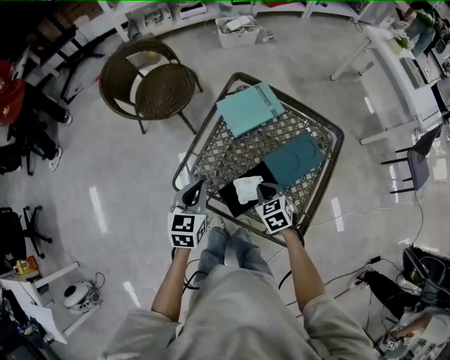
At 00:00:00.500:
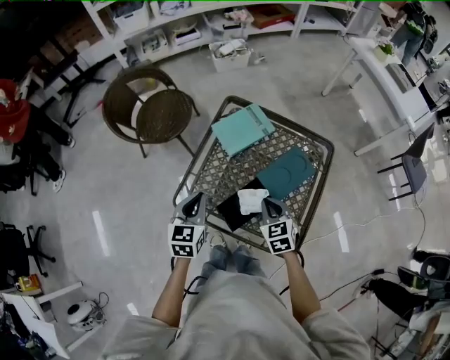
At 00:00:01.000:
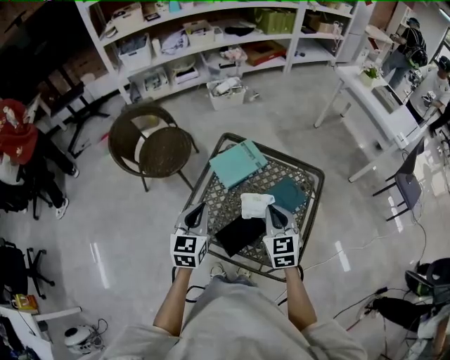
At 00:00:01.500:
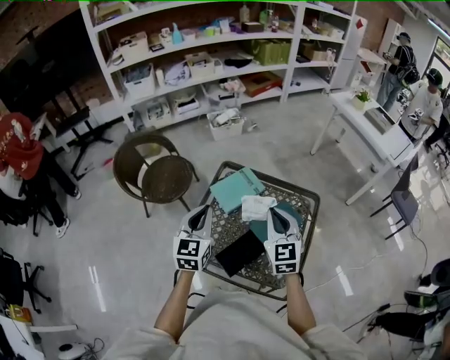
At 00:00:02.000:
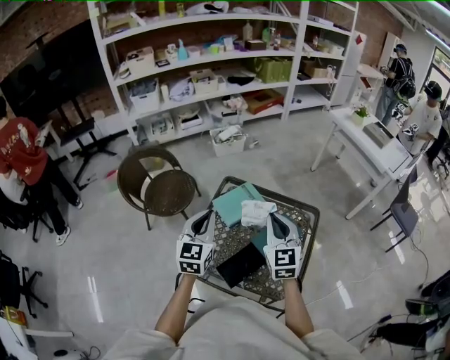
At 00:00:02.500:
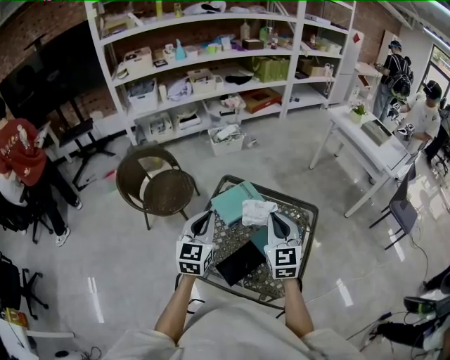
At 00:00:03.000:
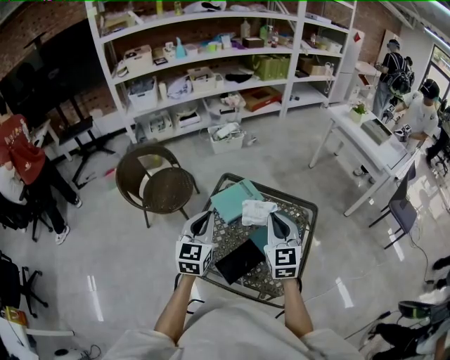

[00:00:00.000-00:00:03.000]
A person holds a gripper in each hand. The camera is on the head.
00:00:00.000 to 00:00:01.500: The right gripper heads upward, covering about 30 cm, and points its fingers about 40 degrees further upward. Meanwhile the left gripper is displaced upward and forward by some 20 cm, and changes its angle by about 20 degrees.
00:00:01.500 to 00:00:03.000: There are only small adjustments of the grippers.

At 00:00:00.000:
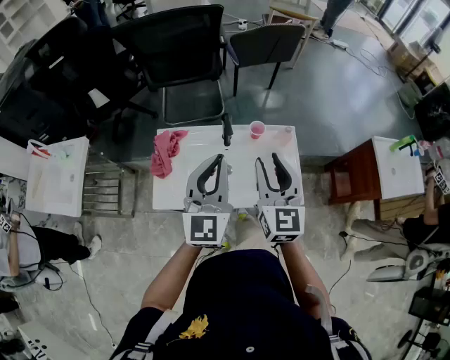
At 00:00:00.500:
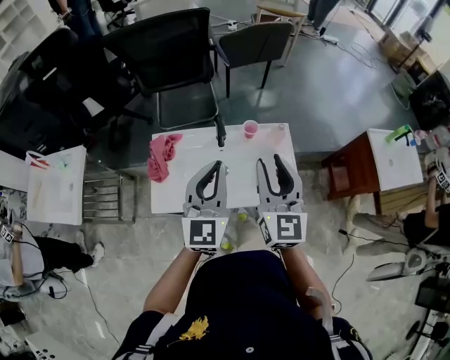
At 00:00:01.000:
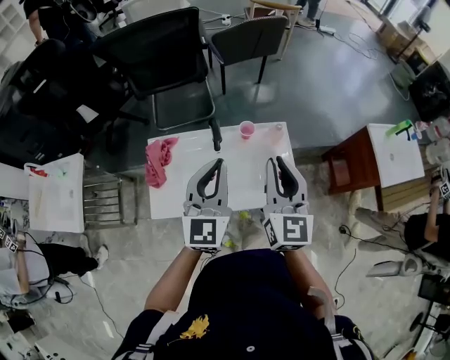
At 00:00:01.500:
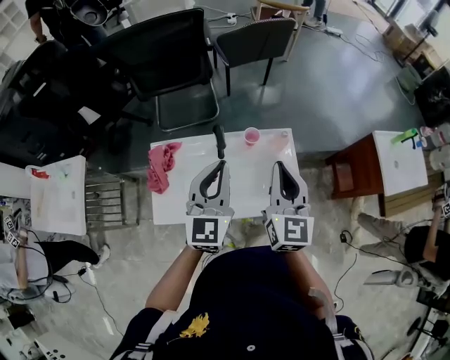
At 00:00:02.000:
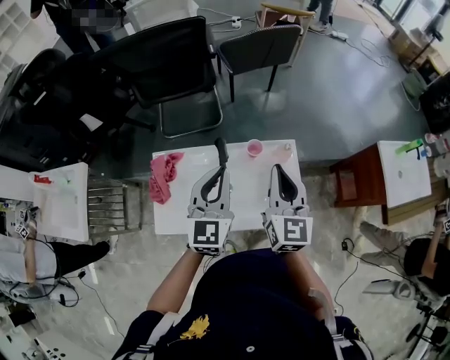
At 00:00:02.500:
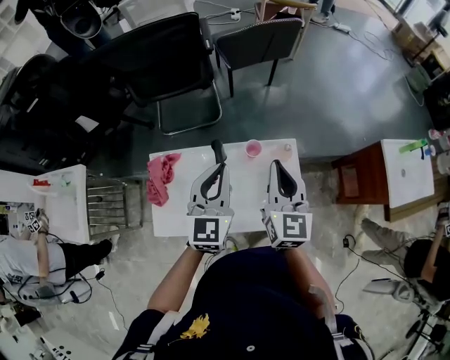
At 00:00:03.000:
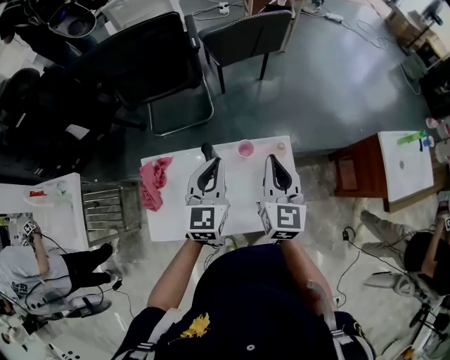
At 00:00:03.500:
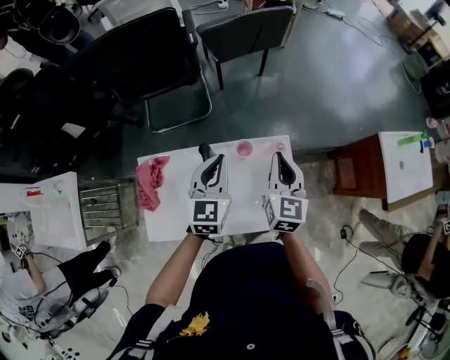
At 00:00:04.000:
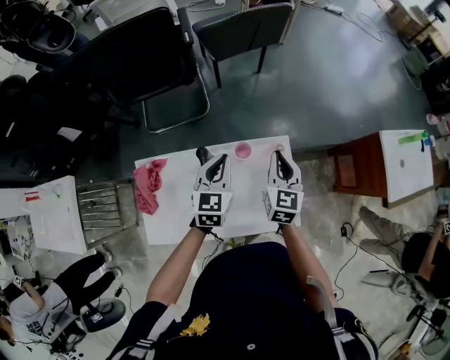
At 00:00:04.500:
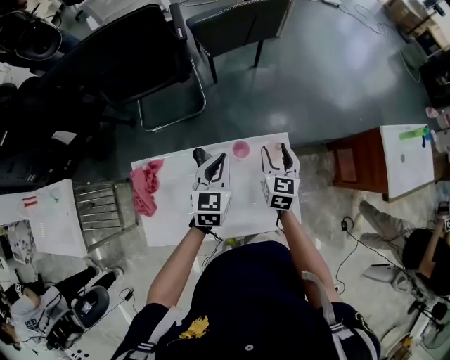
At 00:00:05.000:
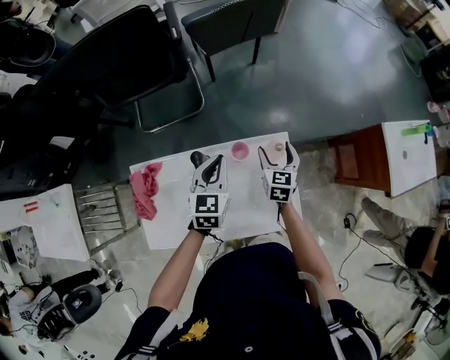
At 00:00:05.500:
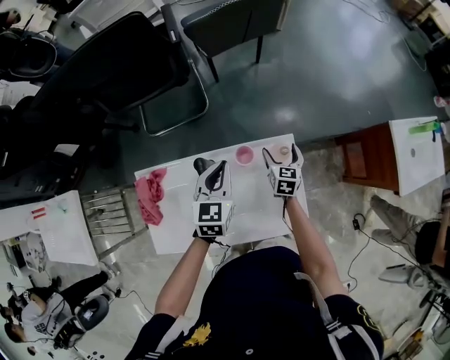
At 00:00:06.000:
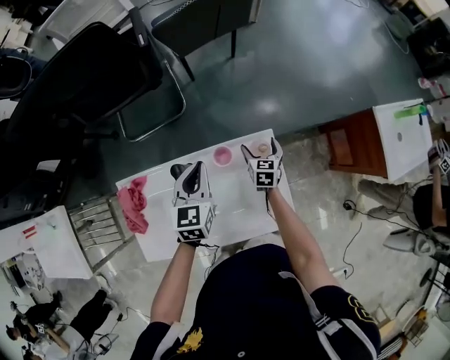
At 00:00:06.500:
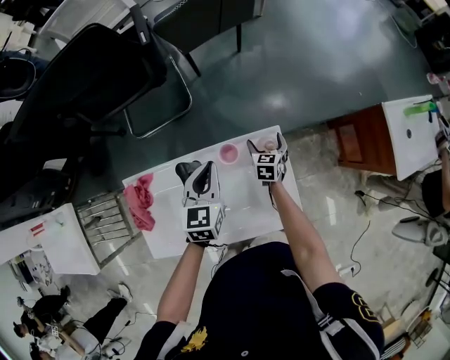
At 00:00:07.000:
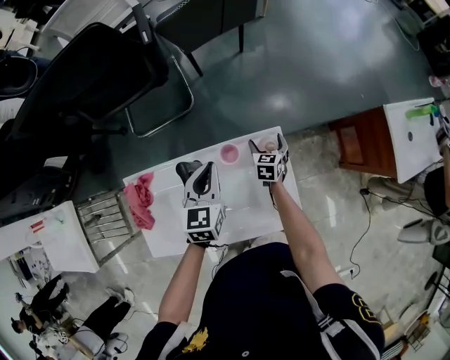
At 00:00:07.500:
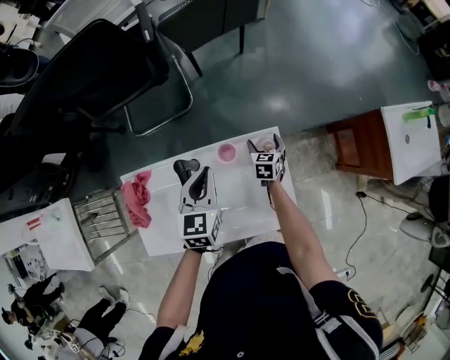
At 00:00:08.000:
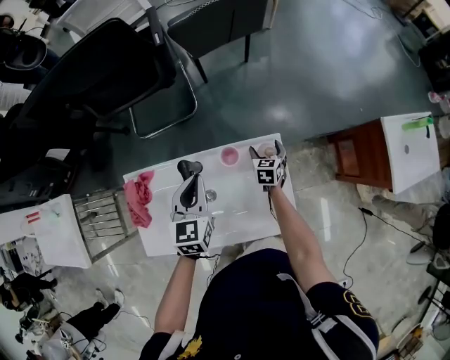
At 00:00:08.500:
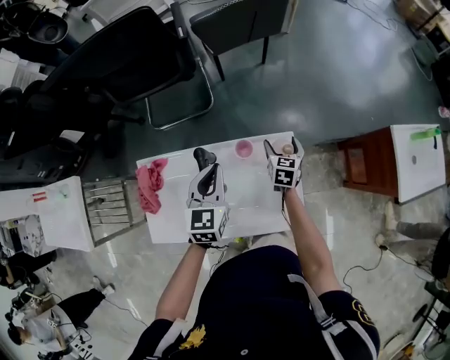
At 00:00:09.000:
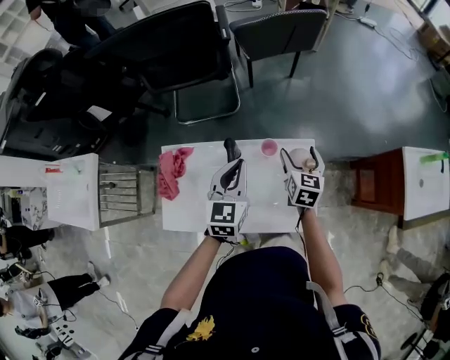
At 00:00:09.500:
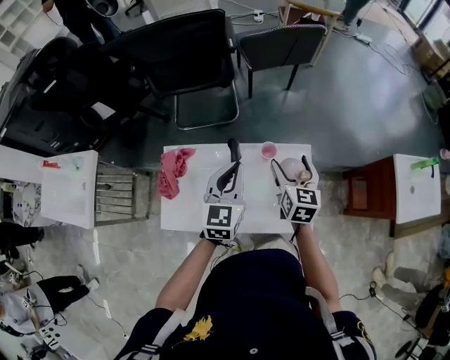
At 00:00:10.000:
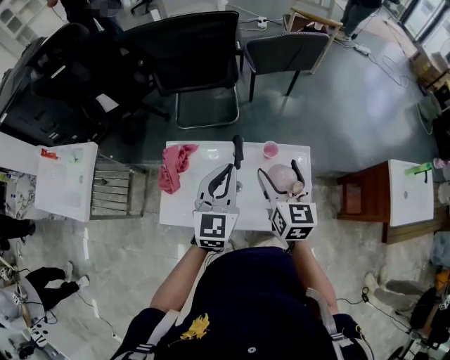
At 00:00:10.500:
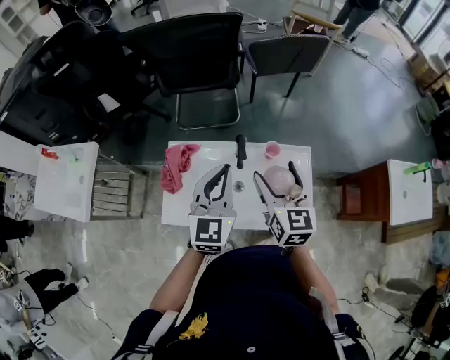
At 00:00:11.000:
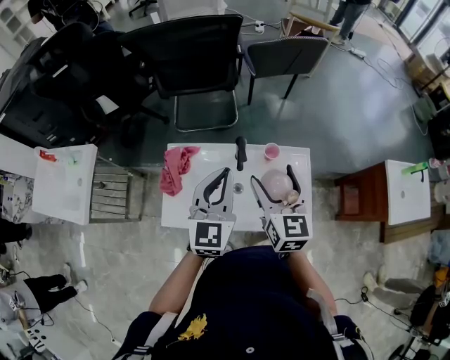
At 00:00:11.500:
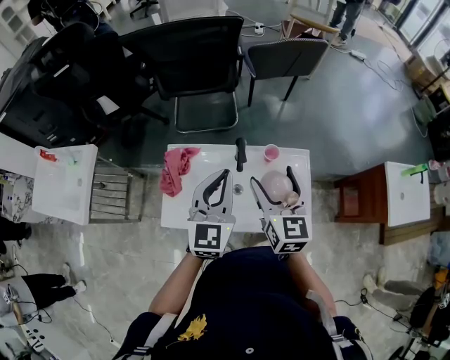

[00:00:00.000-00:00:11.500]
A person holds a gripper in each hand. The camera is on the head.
00:00:00.000 to 00:00:02.000: The left gripper moves forward and downward, roughly 10 cm. Meanwhile the right gripper travels forward and to the right by approximately 10 cm.
00:00:02.000 to 00:00:04.000: The right gripper moves downward, forward and to the right, approximately 20 cm. The left gripper travels downward and forward by roughly 20 cm.
00:00:04.000 to 00:00:06.000: The right gripper is displaced downward by roughly 25 cm, and opens its fingers, while the left gripper shifts by some 5 cm.
00:00:06.000 to 00:00:07.500: The grippers make only small movements.
00:00:07.500 to 00:00:09.500: The right gripper moves upward and backward, about 30 cm, and turns by about 20 degrees, while the left gripper shifts about 15 cm upward, backward and to the left.
00:00:09.500 to 00:00:11.500: The left gripper heads upward, to the left and backward, covering approximately 15 cm; the right gripper shifts about 20 cm to the left, upward and backward.

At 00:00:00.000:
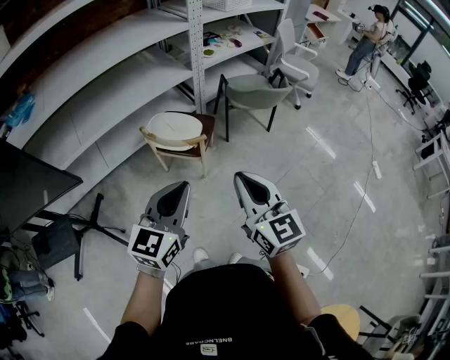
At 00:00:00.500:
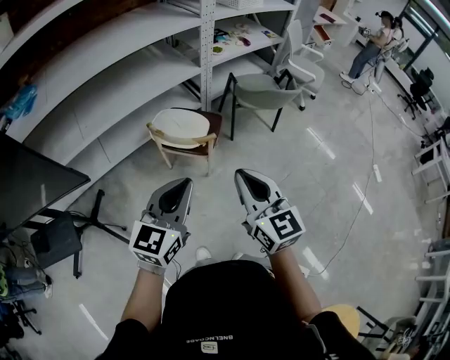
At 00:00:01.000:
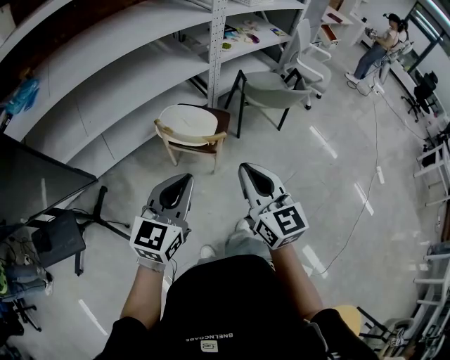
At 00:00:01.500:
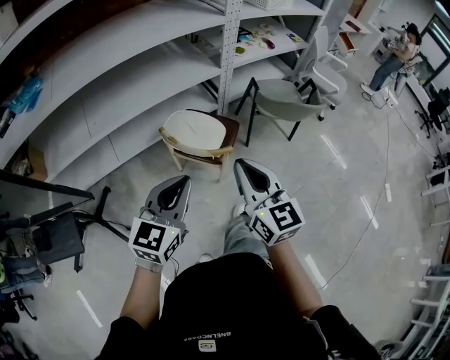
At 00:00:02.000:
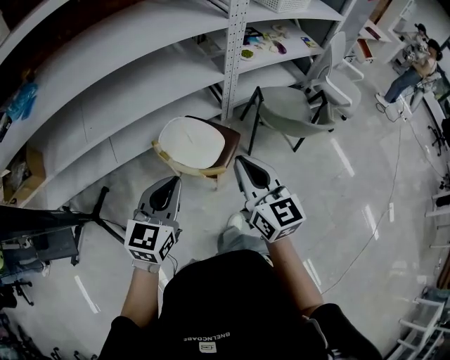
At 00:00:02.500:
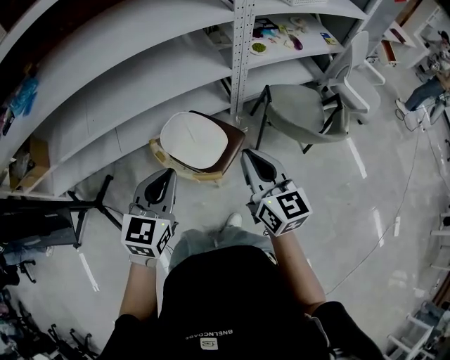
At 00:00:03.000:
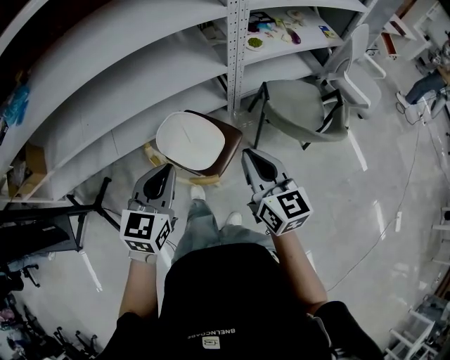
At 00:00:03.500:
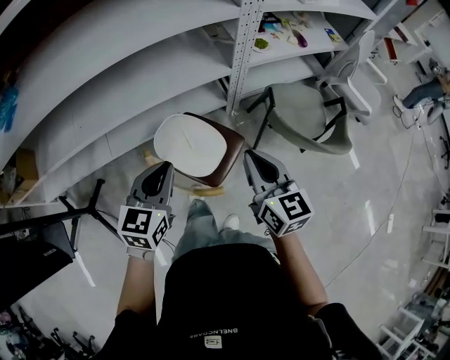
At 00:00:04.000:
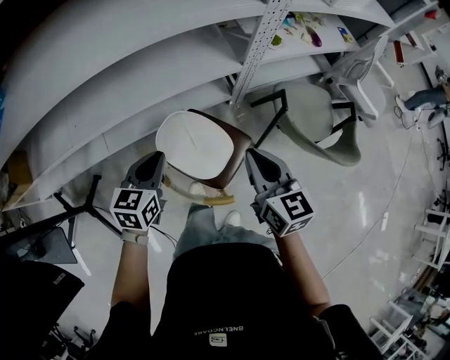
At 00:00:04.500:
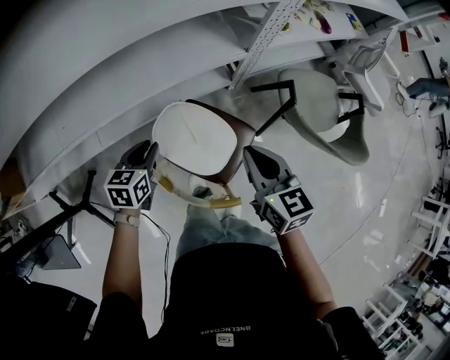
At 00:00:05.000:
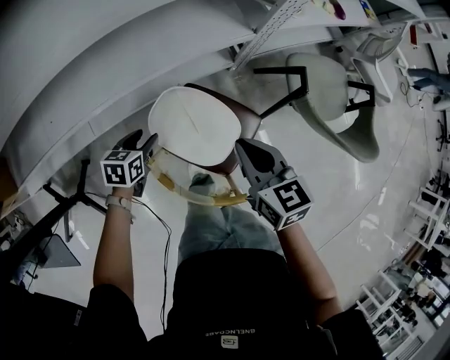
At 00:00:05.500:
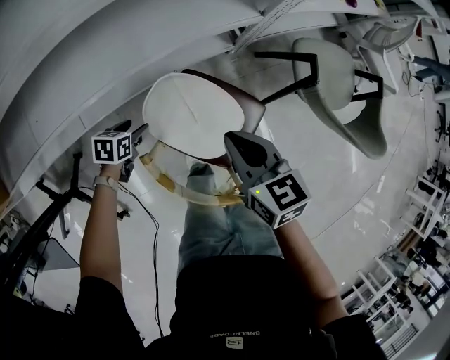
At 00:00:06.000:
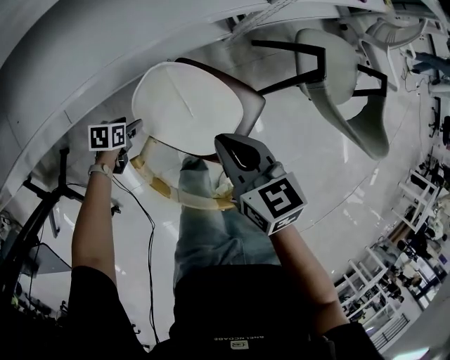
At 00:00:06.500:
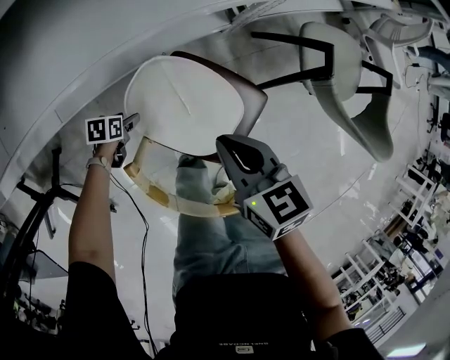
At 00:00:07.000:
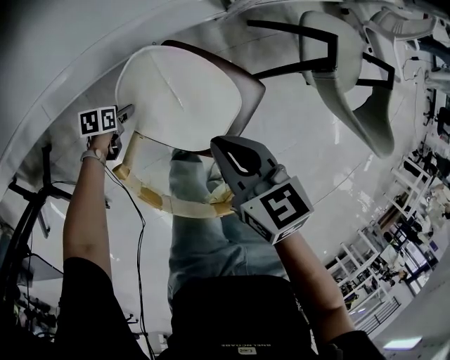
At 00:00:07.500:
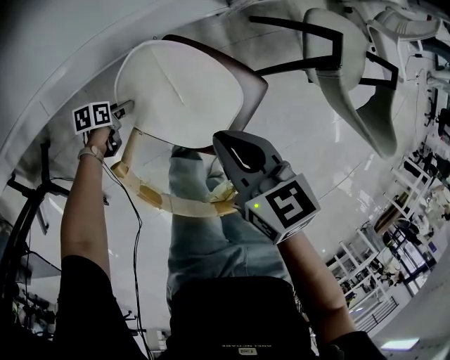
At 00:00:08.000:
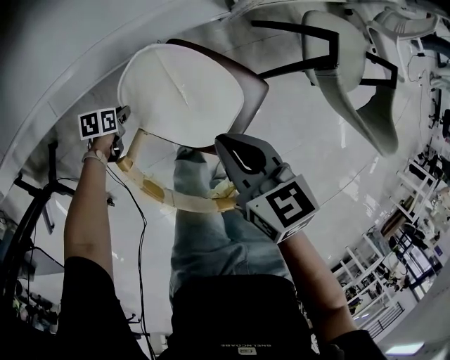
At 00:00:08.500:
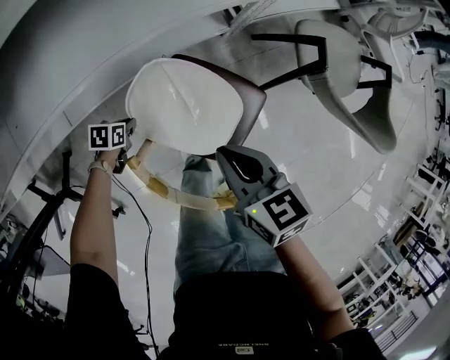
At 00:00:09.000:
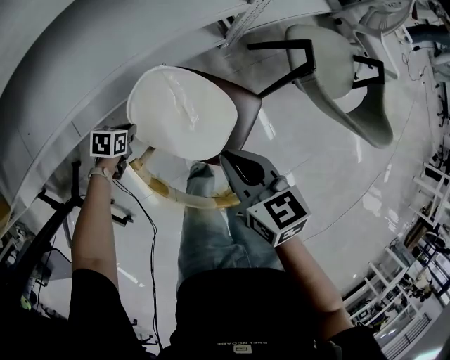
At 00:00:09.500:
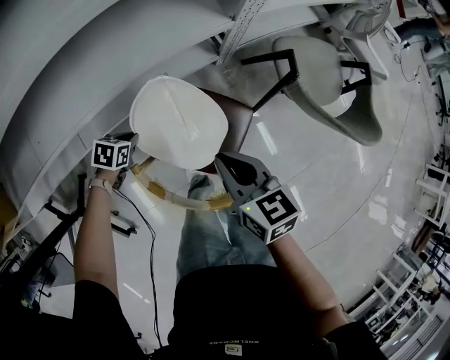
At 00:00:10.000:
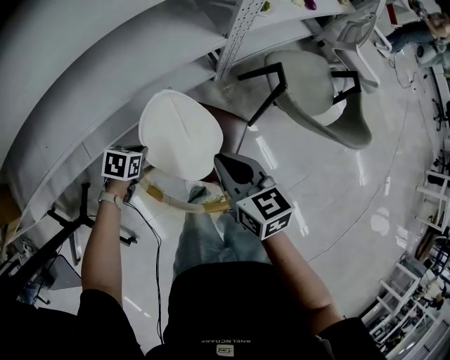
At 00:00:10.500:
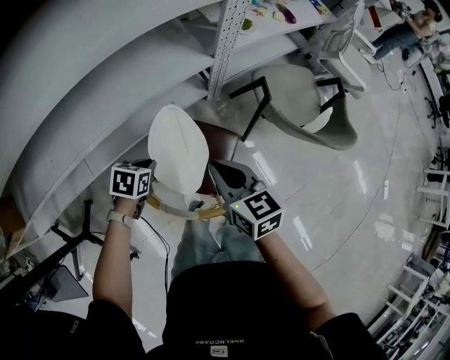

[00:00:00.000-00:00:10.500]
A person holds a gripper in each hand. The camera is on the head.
00:00:00.000 to 00:00:02.000: The grippers both shift forward by about 25 cm.
00:00:02.000 to 00:00:04.000: The left gripper goes some 30 cm forward and downward, and rotates about 20 degrees; the right gripper is displaced forward by about 25 cm.
00:00:04.000 to 00:00:06.500: The left gripper moves downward, approximately 50 cm, tips its fingers downward by about 30 degrees, and opens; the right gripper heads downward and to the left, covering roughly 25 cm, and changes its angle by roughly 30 degrees.
00:00:06.500 to 00:00:08.500: The left gripper closes.
00:00:08.500 to 00:00:10.500: The right gripper heads upward and to the right, covering about 15 cm. Meanwhile the left gripper moves upward and to the right, some 30 cm, and swivels some 20 degrees.

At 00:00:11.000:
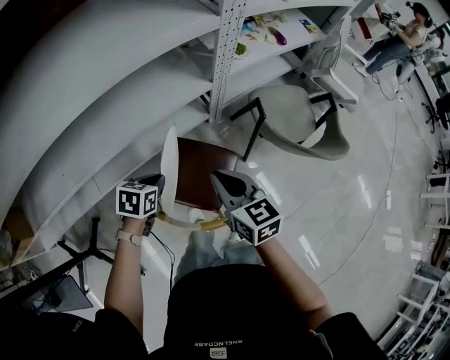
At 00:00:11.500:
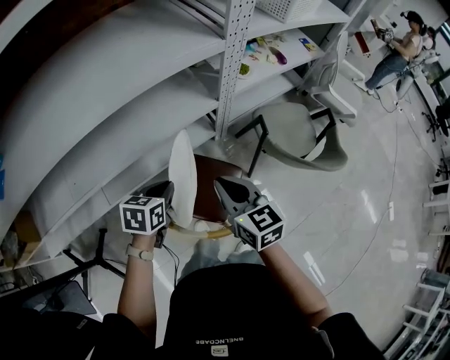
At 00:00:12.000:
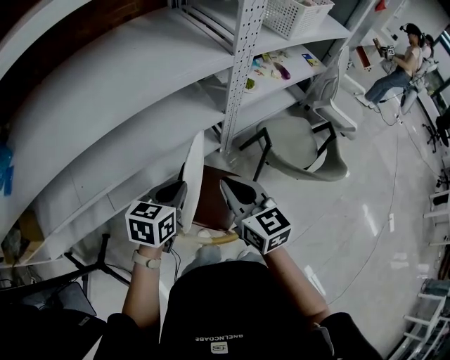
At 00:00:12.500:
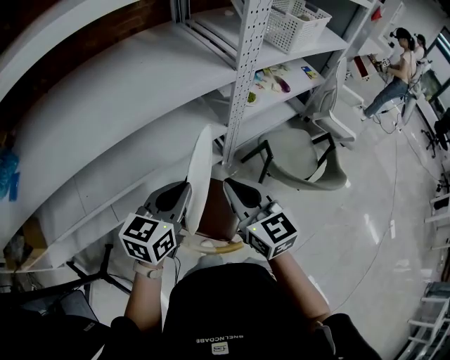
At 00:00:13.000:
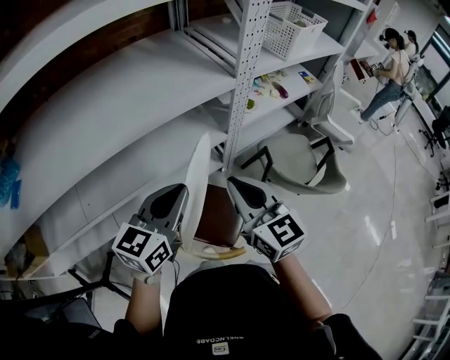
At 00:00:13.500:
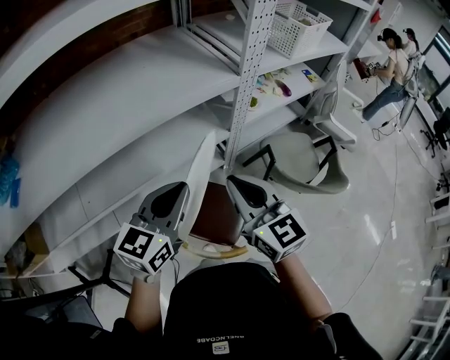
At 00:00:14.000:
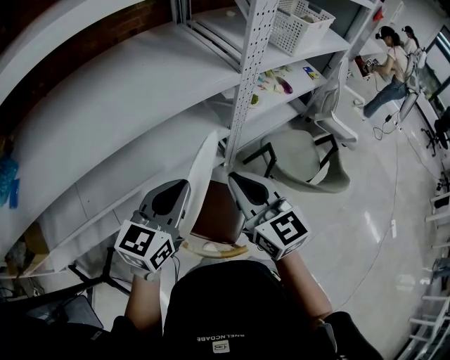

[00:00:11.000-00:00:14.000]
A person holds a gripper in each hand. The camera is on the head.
00:00:11.000 to 00:00:12.500: The left gripper heads upward, covering about 25 cm, and points its fingers some 40 degrees further upward. The right gripper is displaced upward by approximately 15 cm.
00:00:12.500 to 00:00:14.000: The grippers stay close to where they were, moving slightly.
